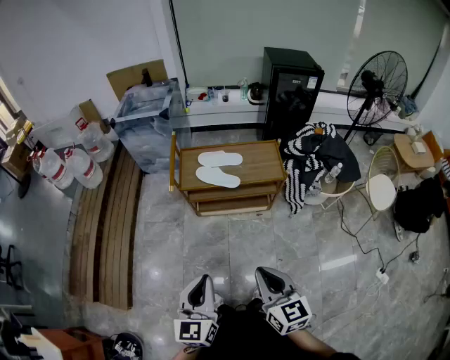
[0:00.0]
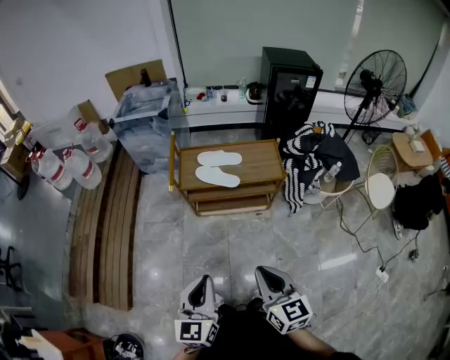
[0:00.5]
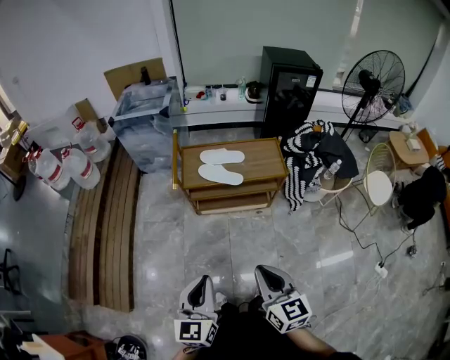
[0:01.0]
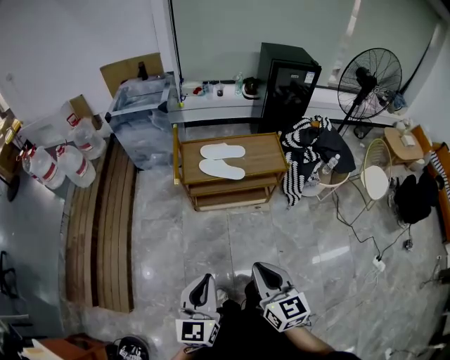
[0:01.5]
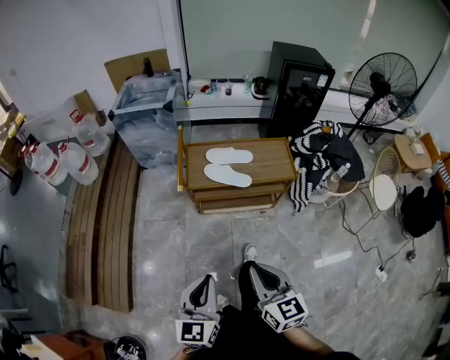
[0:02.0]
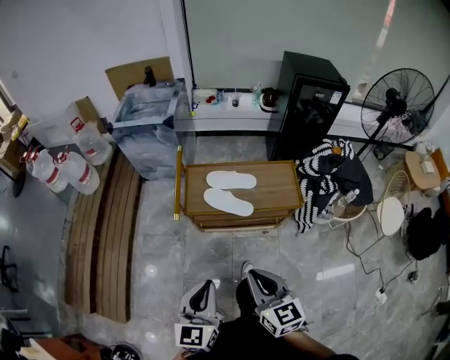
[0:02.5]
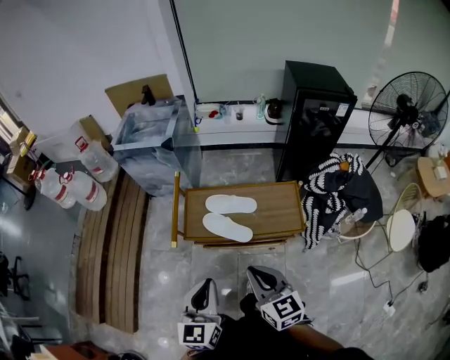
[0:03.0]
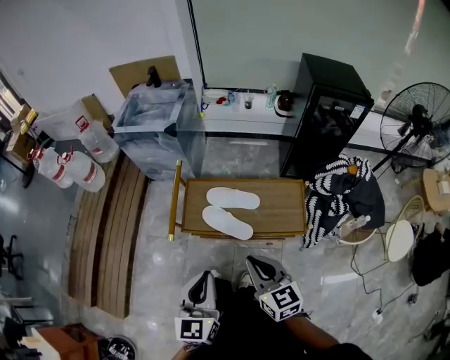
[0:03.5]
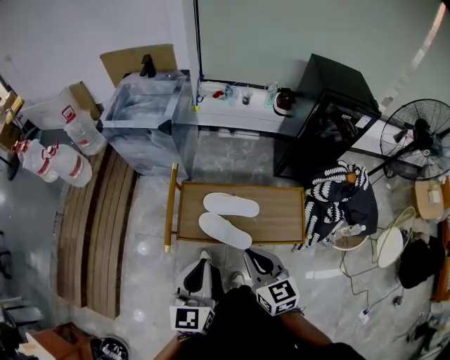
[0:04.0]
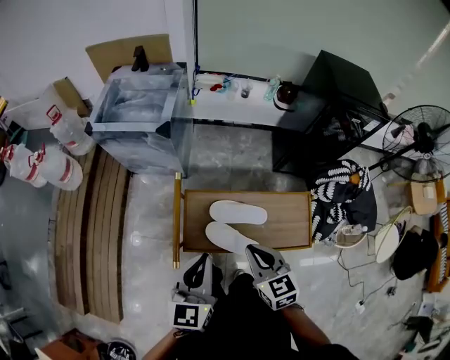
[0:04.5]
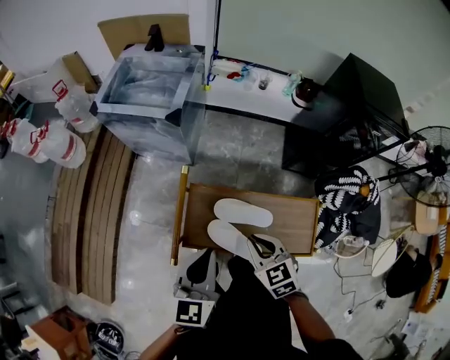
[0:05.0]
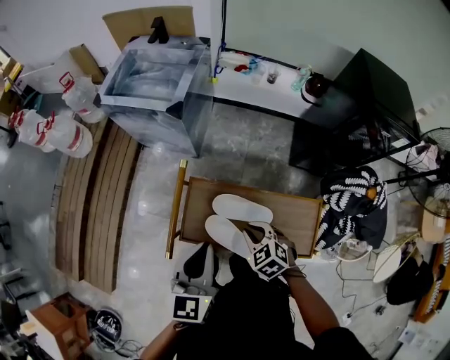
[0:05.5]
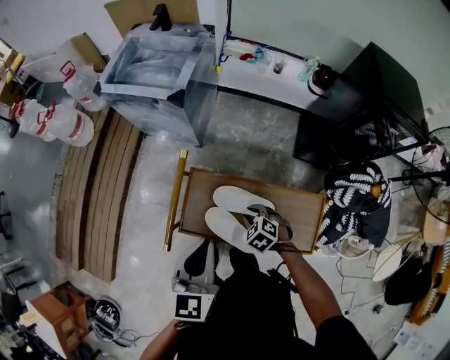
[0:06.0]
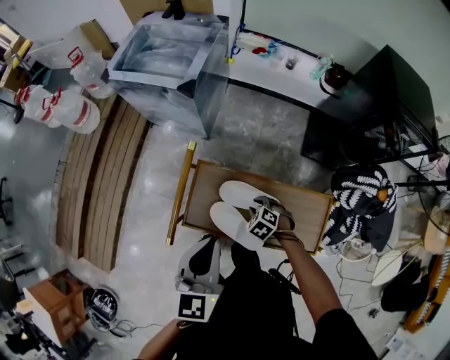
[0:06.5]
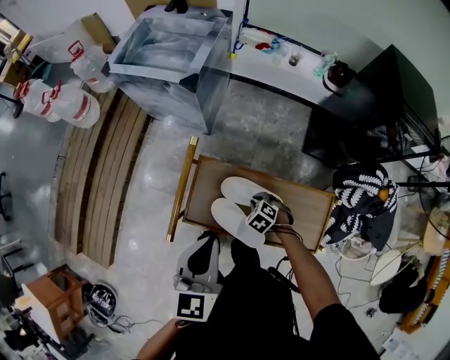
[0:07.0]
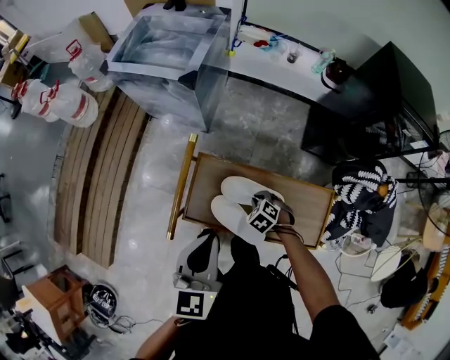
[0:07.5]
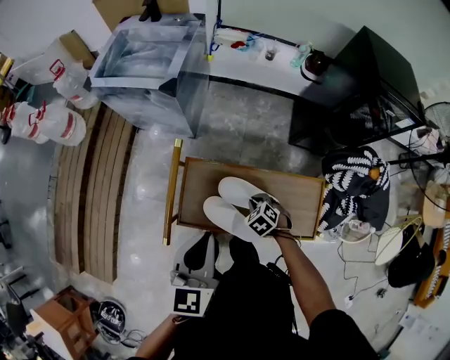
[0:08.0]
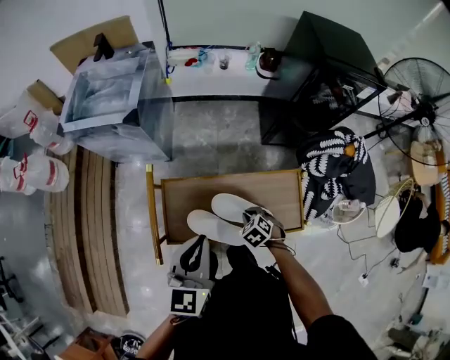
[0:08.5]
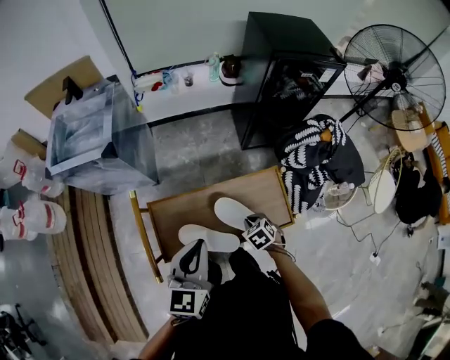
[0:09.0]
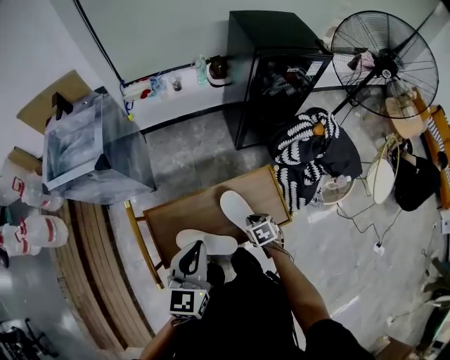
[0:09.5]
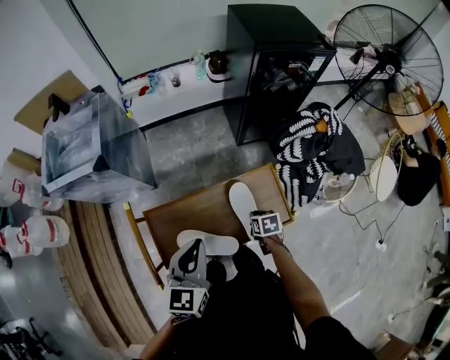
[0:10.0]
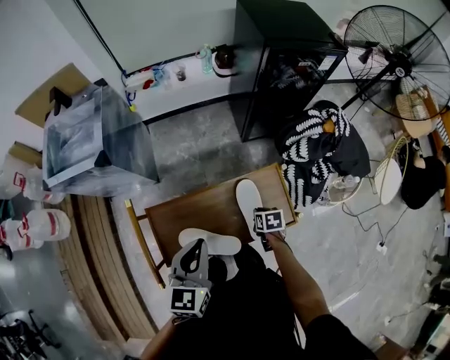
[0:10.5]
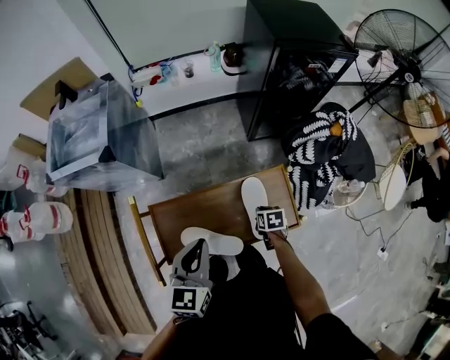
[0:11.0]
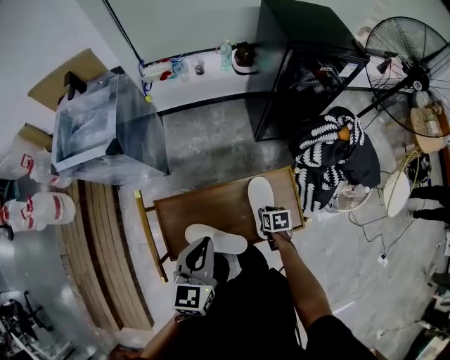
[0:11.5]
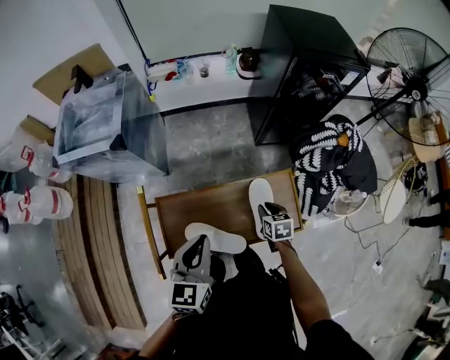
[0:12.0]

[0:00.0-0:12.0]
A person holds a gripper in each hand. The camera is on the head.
0:00.0 to 0:02.0: The grippers both shift to the left and forward by roughly 10 cm.
0:02.0 to 0:04.0: The two grippers travel together, forward, about 40 cm.
0:04.0 to 0:06.0: The left gripper moves forward, approximately 15 cm; the right gripper travels downward and forward by some 30 cm, and angles its fingers downward, by some 40 degrees.
0:06.0 to 0:08.0: The right gripper heads downward, covering some 5 cm.
0:08.0 to 0:10.0: The right gripper is displaced to the right by about 20 cm, and rotates around the line of its fingers by some 70 degrees, clockwise from behind. Meanwhile the left gripper is displaced to the right by about 15 cm, and rotates approximately 20 degrees.
0:10.0 to 0:12.0: The right gripper shifts by some 5 cm.

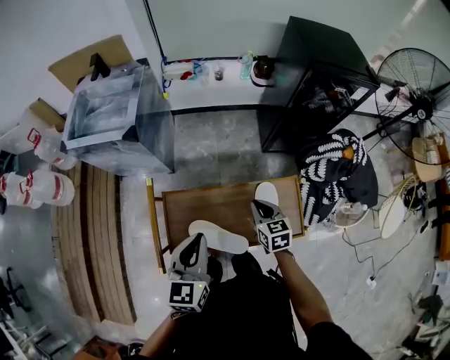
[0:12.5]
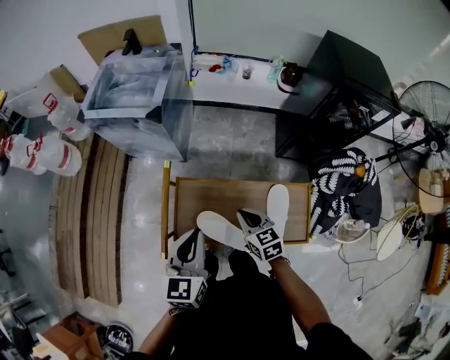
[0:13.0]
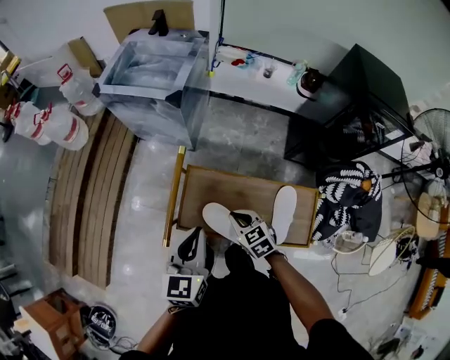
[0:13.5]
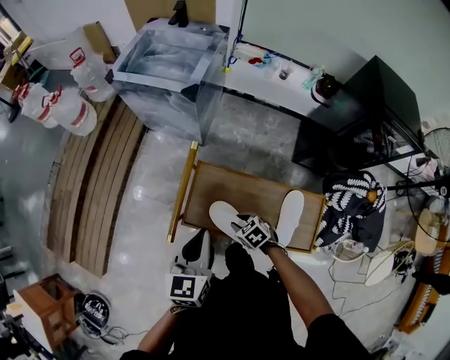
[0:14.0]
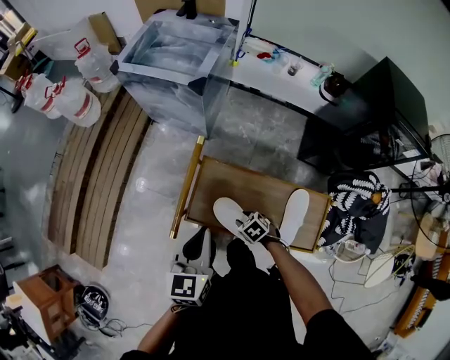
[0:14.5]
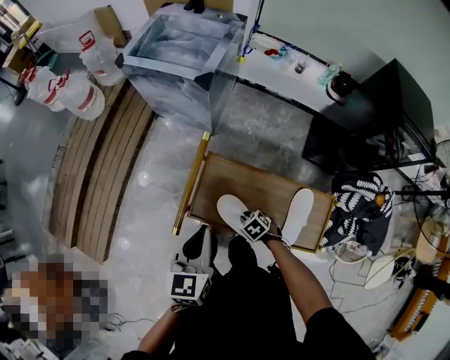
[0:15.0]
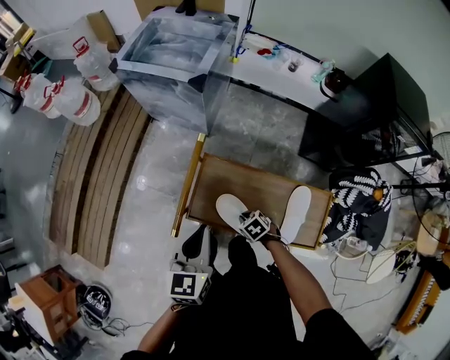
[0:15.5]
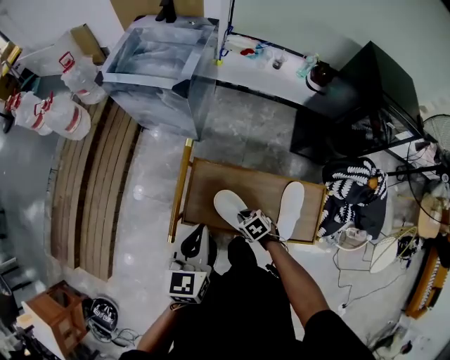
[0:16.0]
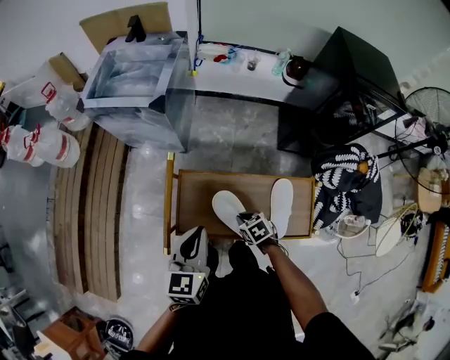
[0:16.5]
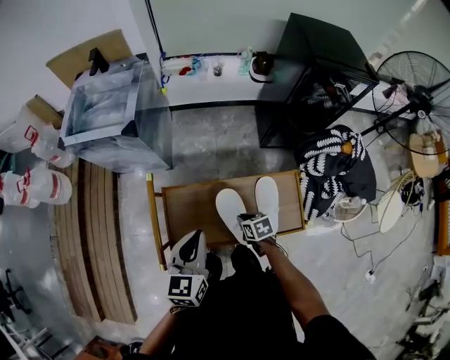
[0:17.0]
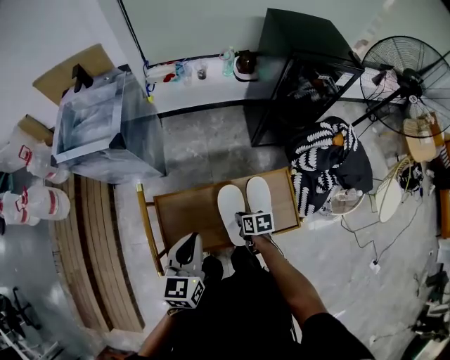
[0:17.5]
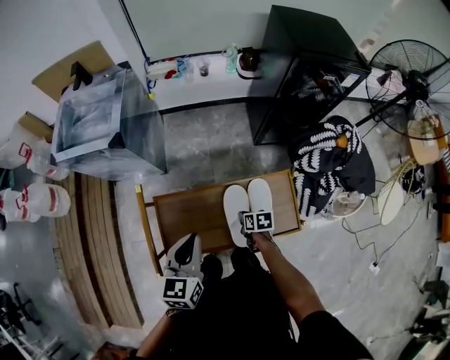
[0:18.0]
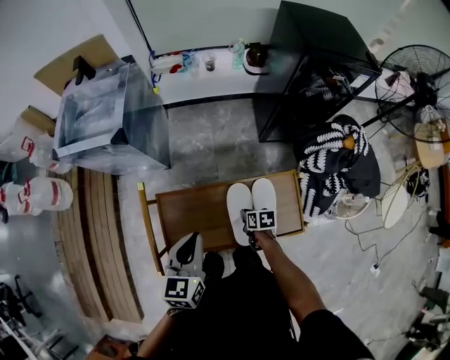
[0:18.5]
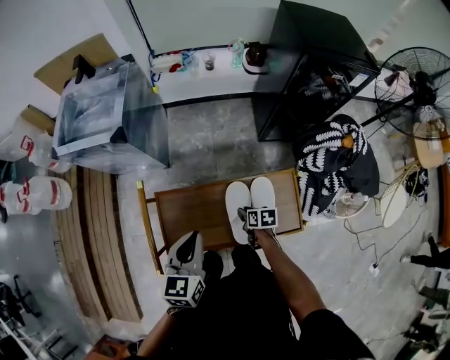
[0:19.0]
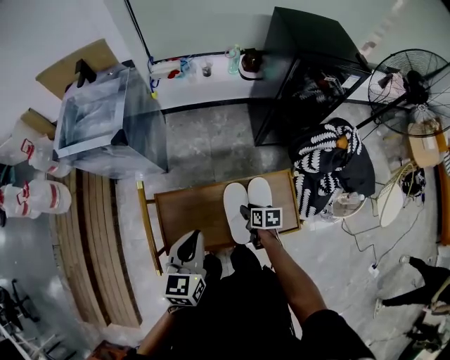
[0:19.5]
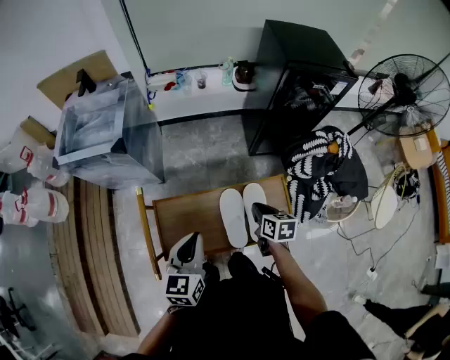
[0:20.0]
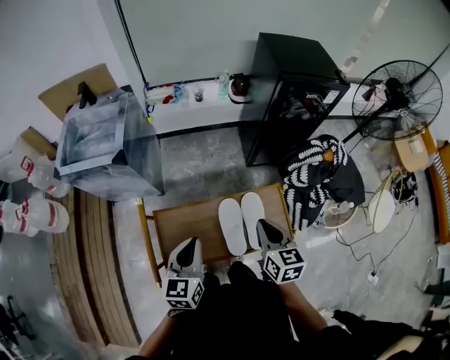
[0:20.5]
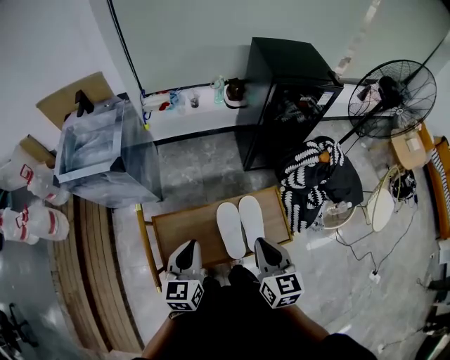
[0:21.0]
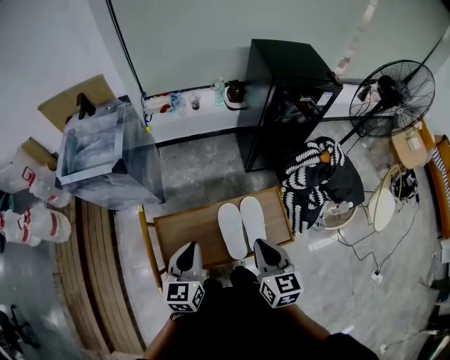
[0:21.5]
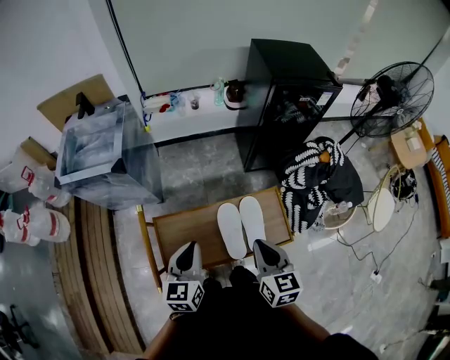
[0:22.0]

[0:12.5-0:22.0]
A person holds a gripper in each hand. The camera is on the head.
0:12.5 to 0:14.5: The right gripper moves about 25 cm, angles its fingers downward, by about 30 degrees, and opens its fingers, while the left gripper shifts by some 15 cm, and rotates roughly 20 degrees.
0:14.5 to 0:16.5: Both grippers move to the right, approximately 5 cm. The right gripper swivels some 30 degrees, and closes its fingers.
0:16.5 to 0:18.0: Both grippers move to the right, roughly 10 cm. The right gripper rotates around the line of its fingers by about 40 degrees, clockwise from behind.
0:18.0 to 0:20.0: The right gripper moves upward, about 15 cm, rotates about 20 degrees, and opens and closes again.
0:20.0 to 0:22.0: The right gripper shifts roughly 20 cm upward and backward, and rotates about 20 degrees.

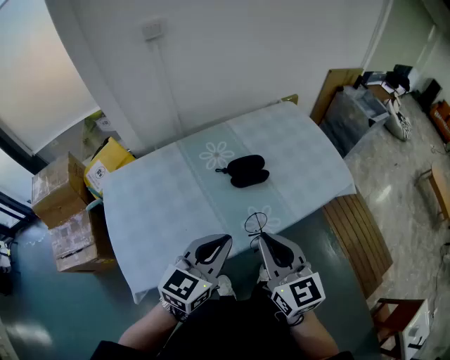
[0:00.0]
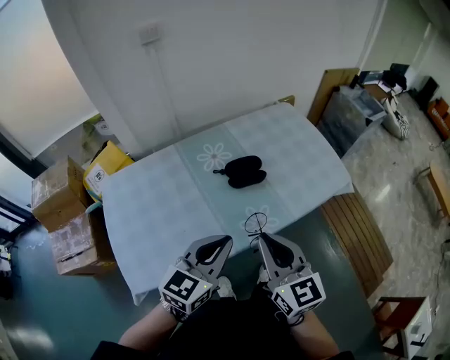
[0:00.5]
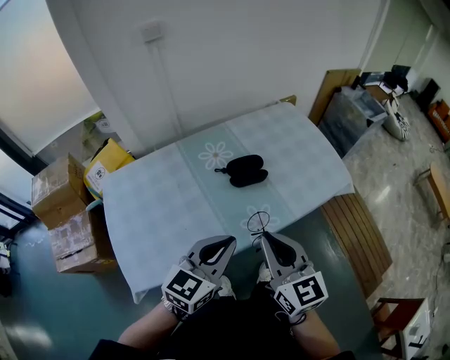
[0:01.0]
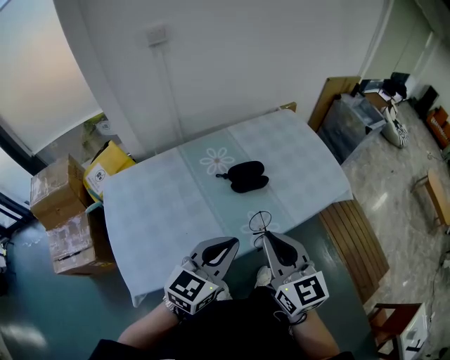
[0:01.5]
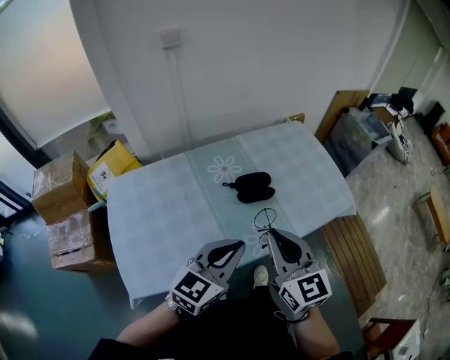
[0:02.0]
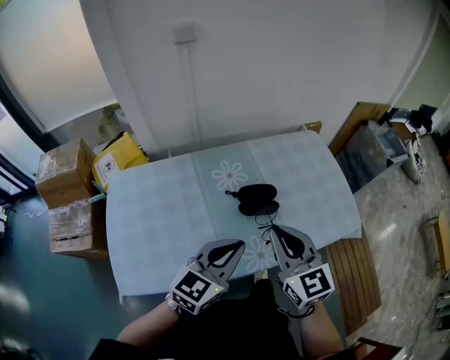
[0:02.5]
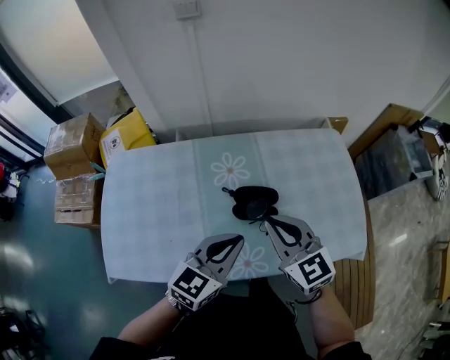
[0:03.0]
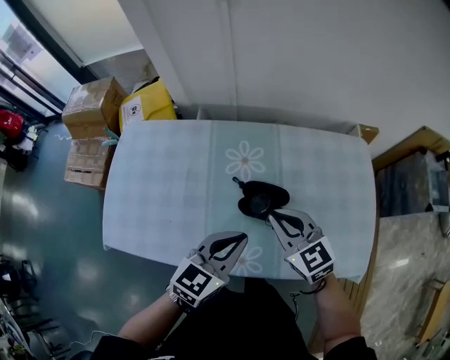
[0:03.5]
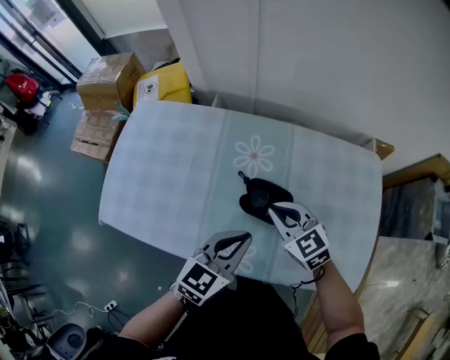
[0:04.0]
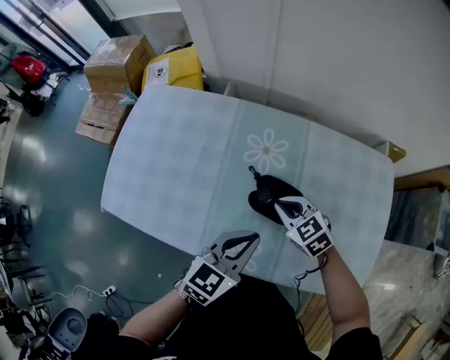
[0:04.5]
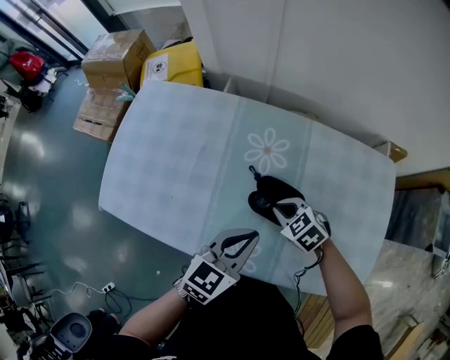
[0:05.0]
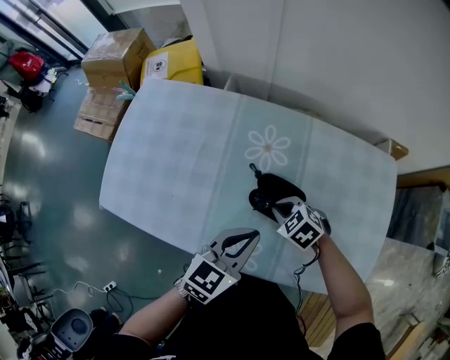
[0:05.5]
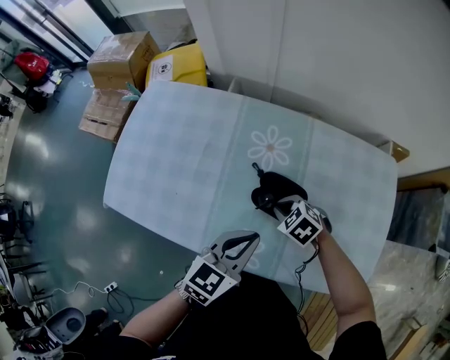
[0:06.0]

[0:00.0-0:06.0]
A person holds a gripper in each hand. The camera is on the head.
0:00.0 to 0:02.0: The right gripper changes place by about 5 cm.
0:02.0 to 0:04.0: The right gripper ends up roughly 30 cm from where it was, and rotates about 60 degrees; the left gripper ends up approximately 25 cm from where it was, and turns by approximately 40 degrees.
0:04.0 to 0:06.0: The right gripper moves downward, roughly 15 cm, and tips its fingers downward by some 30 degrees.
